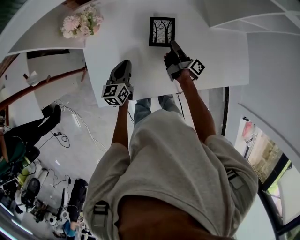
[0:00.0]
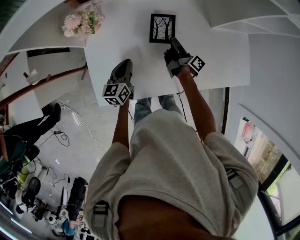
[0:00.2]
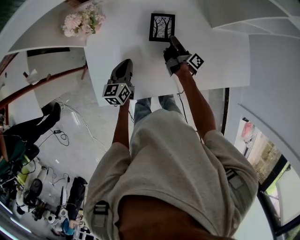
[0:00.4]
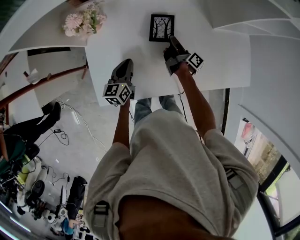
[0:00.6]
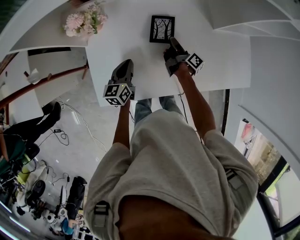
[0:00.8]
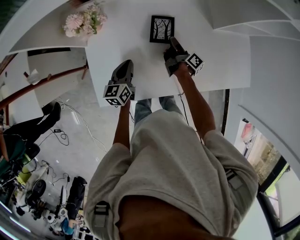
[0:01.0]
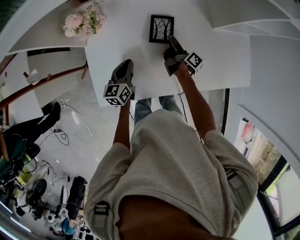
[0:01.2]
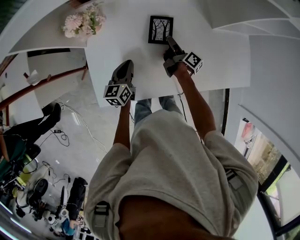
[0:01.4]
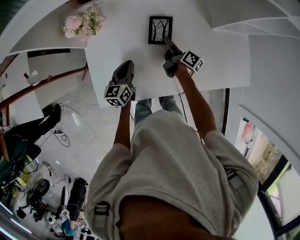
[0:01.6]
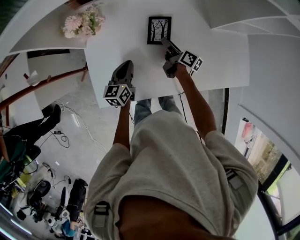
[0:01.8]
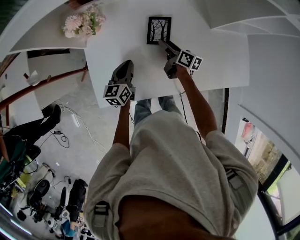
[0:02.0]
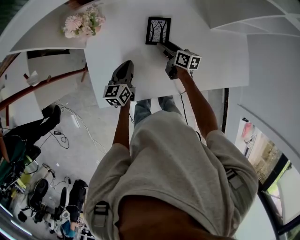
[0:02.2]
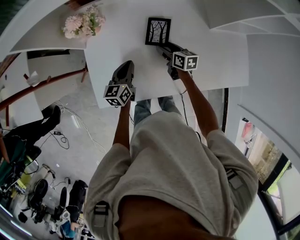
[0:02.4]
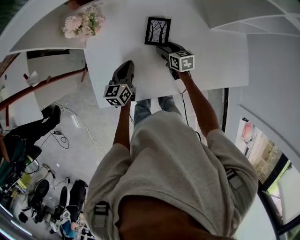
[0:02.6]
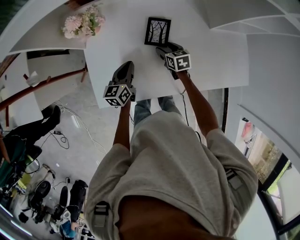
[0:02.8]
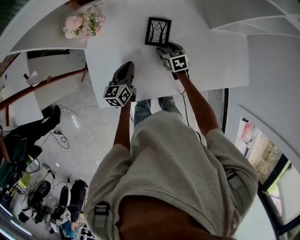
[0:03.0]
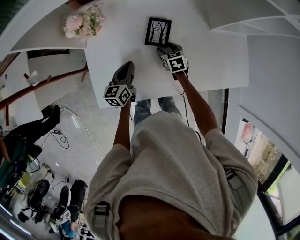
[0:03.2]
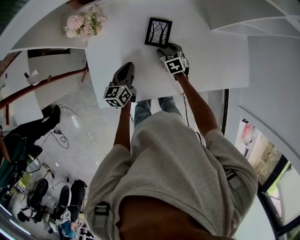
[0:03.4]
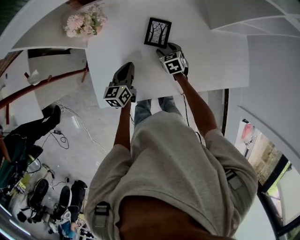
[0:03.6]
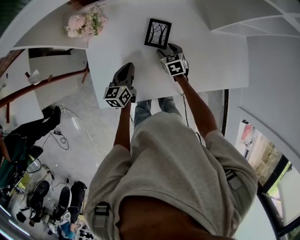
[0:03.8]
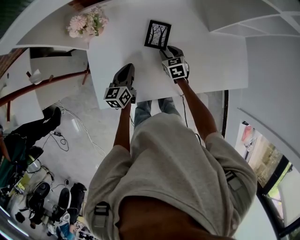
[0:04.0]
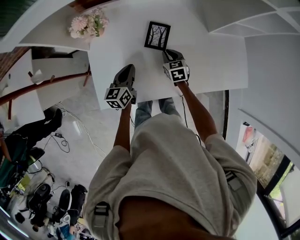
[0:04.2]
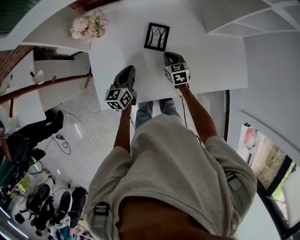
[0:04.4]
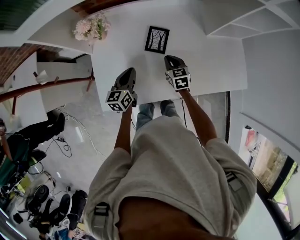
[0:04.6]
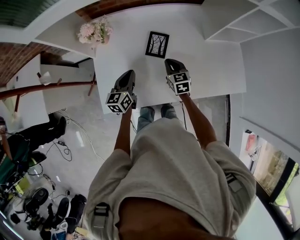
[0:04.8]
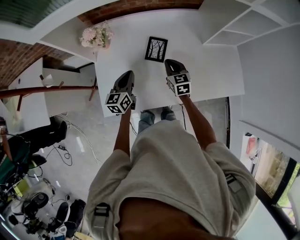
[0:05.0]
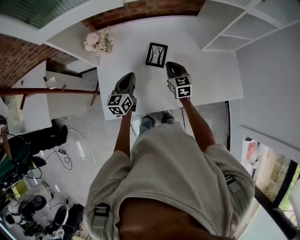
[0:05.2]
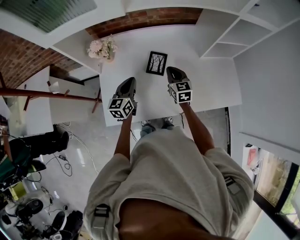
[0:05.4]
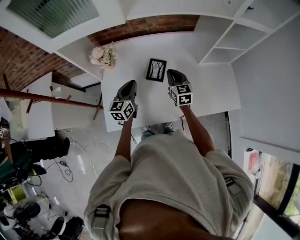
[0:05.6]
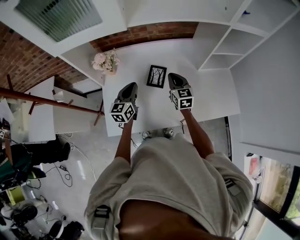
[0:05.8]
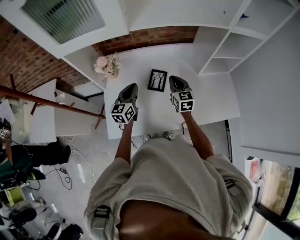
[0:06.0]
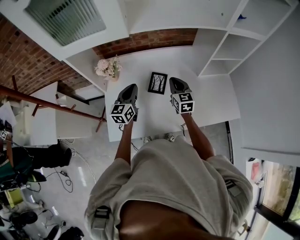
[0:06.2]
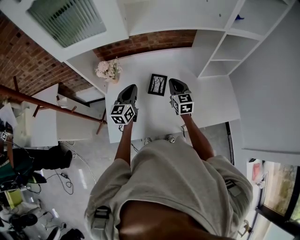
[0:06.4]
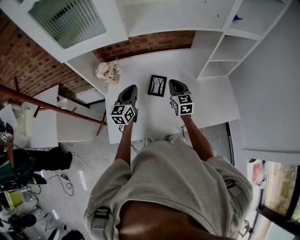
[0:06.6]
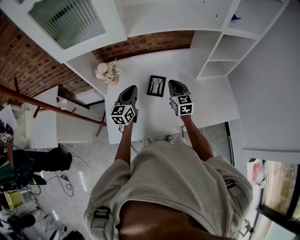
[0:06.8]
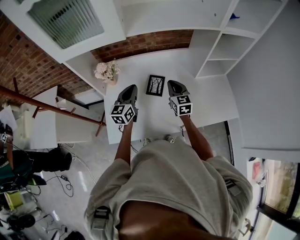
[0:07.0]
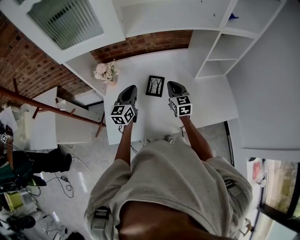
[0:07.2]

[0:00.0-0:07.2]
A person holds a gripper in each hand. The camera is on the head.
0:04.4 to 0:05.8: The left gripper shifts about 10 cm upward.

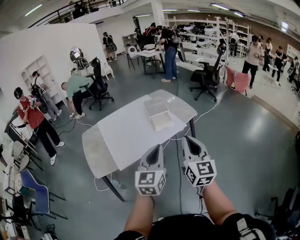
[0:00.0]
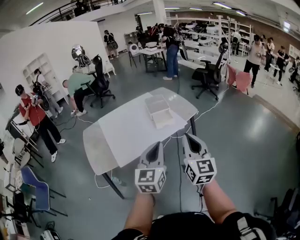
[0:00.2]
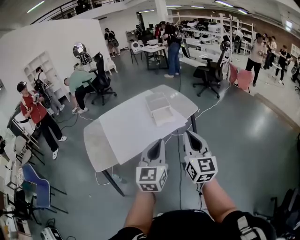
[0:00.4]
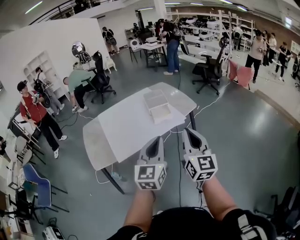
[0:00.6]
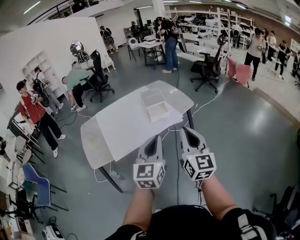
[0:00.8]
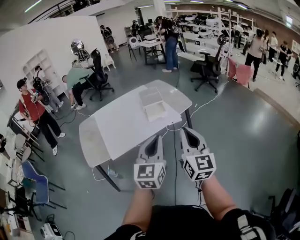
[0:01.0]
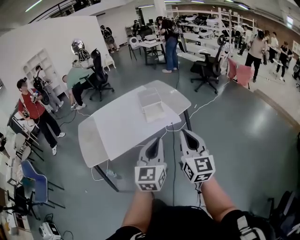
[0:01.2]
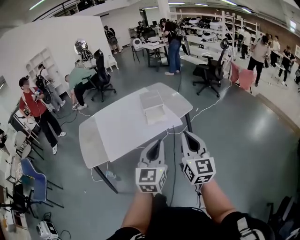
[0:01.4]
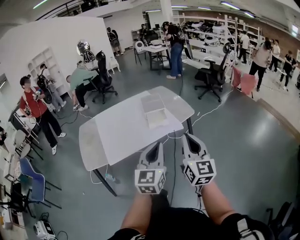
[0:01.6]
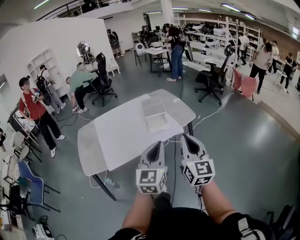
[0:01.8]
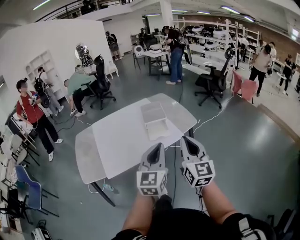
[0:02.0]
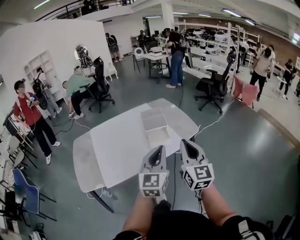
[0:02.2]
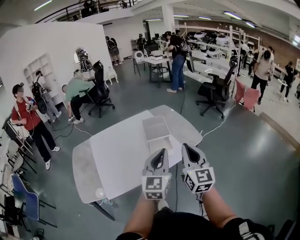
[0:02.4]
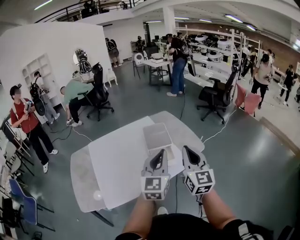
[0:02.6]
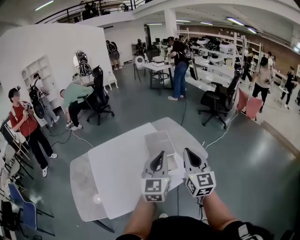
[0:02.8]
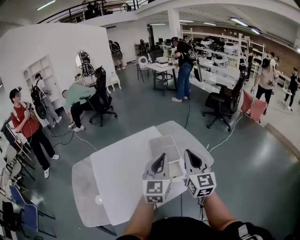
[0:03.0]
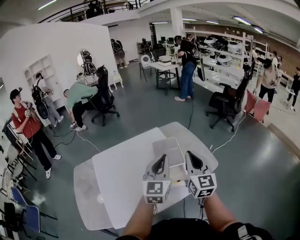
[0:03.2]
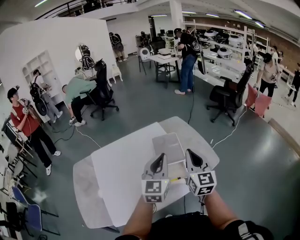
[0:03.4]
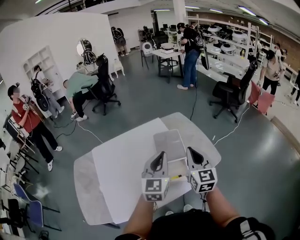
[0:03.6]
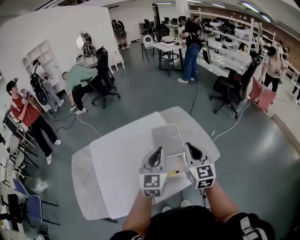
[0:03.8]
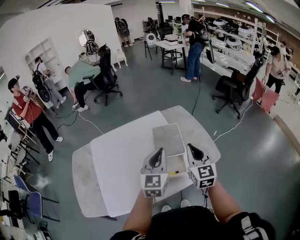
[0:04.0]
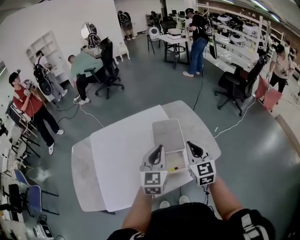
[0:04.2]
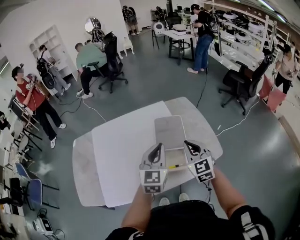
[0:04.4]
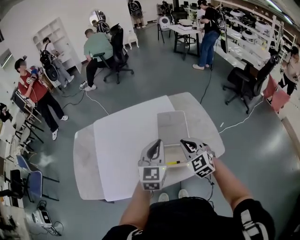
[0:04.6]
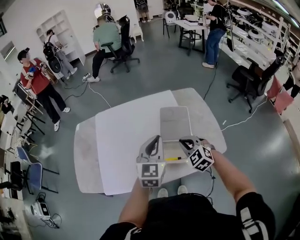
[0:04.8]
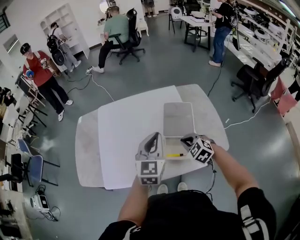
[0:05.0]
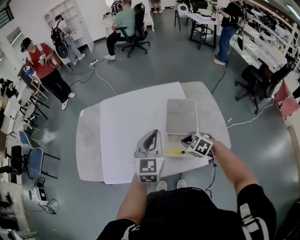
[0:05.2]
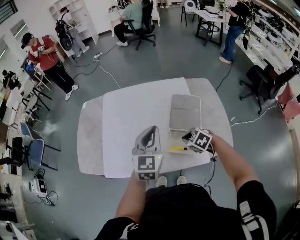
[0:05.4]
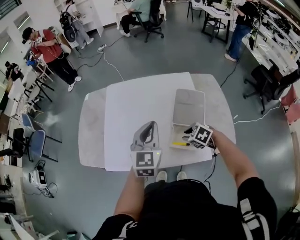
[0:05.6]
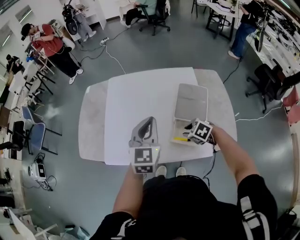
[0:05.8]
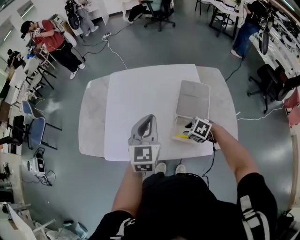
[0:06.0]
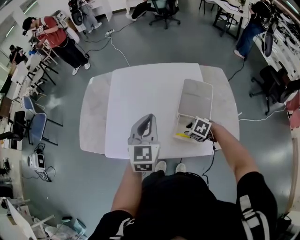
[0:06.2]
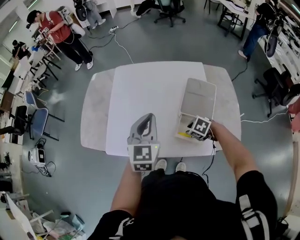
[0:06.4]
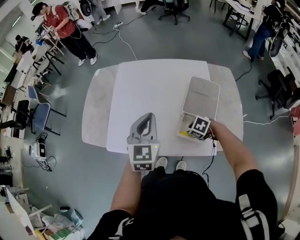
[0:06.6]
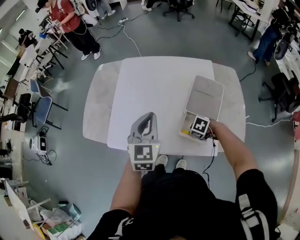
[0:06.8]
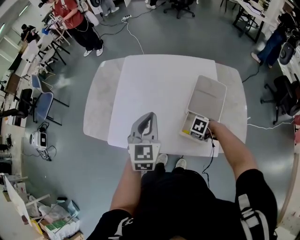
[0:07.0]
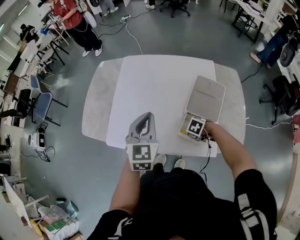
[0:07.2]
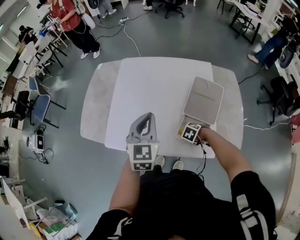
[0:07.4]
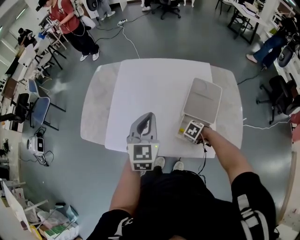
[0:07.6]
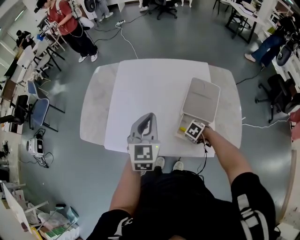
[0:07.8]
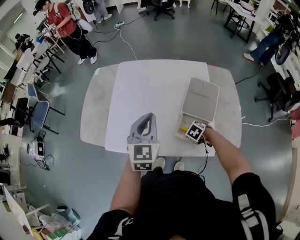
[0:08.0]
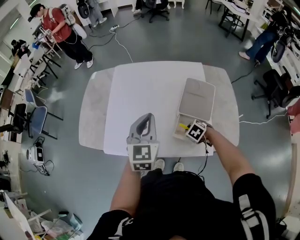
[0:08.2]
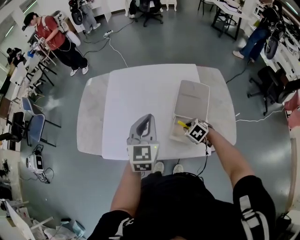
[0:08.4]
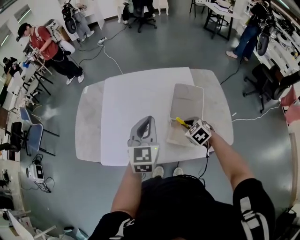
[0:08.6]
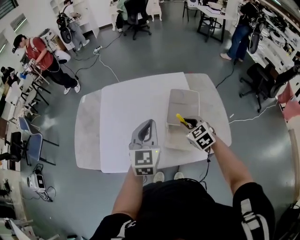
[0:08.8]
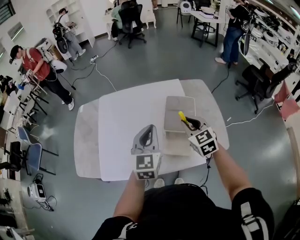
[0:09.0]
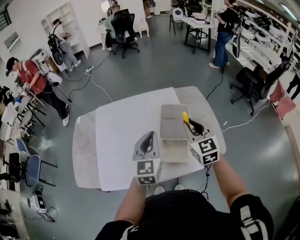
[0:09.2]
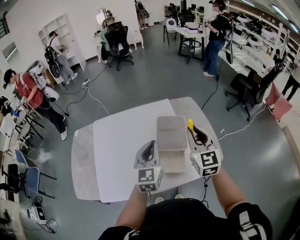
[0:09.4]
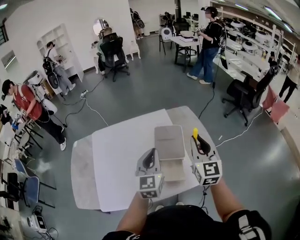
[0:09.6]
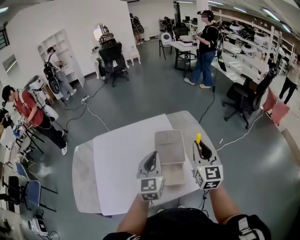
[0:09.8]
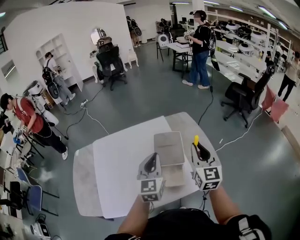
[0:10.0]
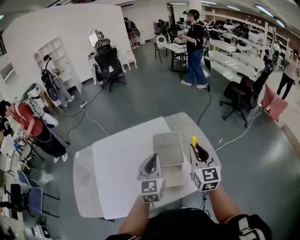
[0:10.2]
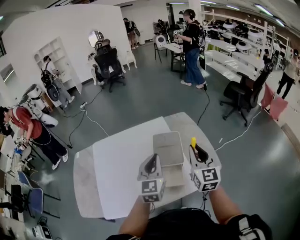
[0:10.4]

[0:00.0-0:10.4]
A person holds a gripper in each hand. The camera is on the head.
0:00.0 to 0:01.4: Both grippers move to the right, some 10 cm.
0:01.4 to 0:03.0: Both grippers are carried forward, approximately 40 cm.
0:03.0 to 0:04.4: The grippers both shift downward and forward by approximately 15 cm. The right gripper turns by roughly 30 degrees.
0:04.4 to 0:06.0: The right gripper shifts about 20 cm downward, tilts its fingers about 50 degrees downward, and opens. Meanwhile the left gripper shifts by about 15 cm, and turns by about 20 degrees.
0:06.0 to 0:07.4: The right gripper travels downward by approximately 10 cm, and swivels about 20 degrees.
0:07.4 to 0:09.0: The left gripper changes place by approximately 10 cm. Meanwhile the right gripper goes roughly 30 cm upward, and angles its fingers upward, by about 60 degrees.
0:09.0 to 0:10.4: The left gripper goes roughly 10 cm to the right, while the right gripper is displaced to the right and upward by approximately 15 cm, and swivels about 40 degrees.

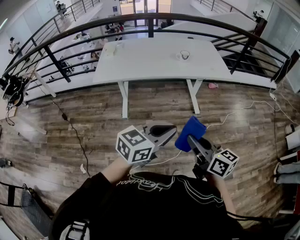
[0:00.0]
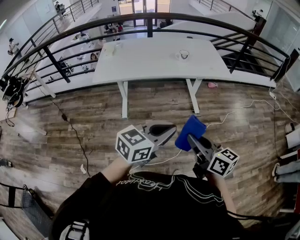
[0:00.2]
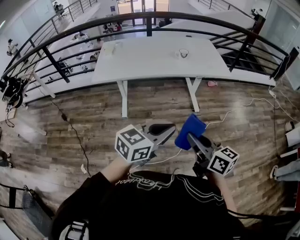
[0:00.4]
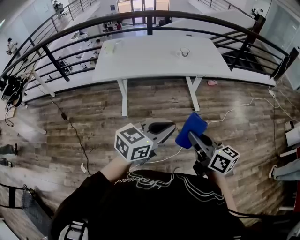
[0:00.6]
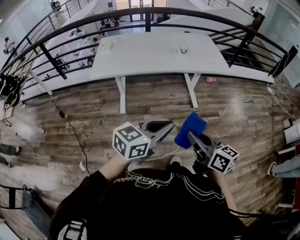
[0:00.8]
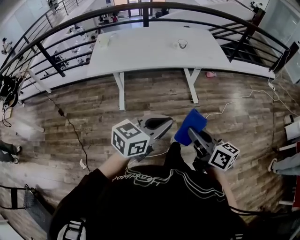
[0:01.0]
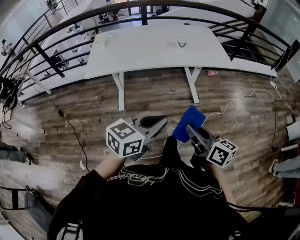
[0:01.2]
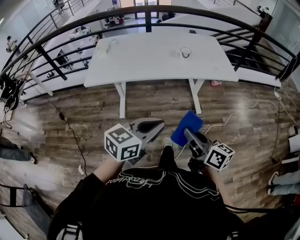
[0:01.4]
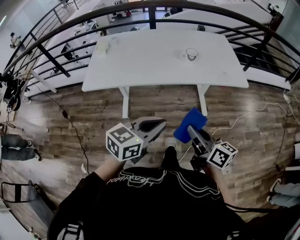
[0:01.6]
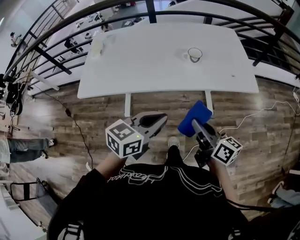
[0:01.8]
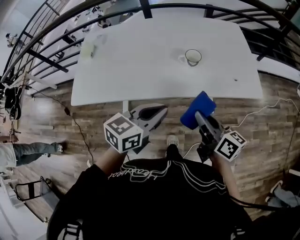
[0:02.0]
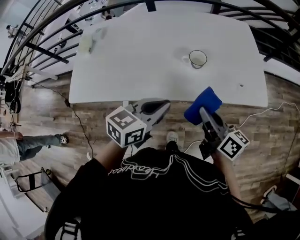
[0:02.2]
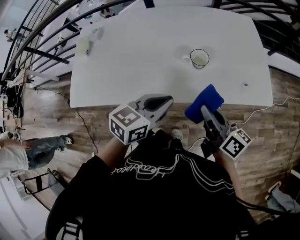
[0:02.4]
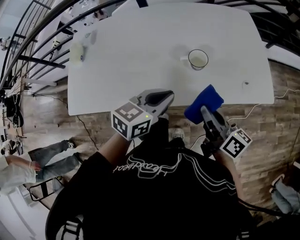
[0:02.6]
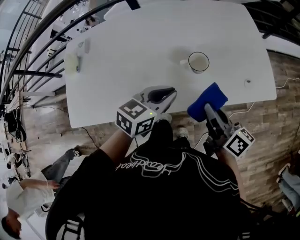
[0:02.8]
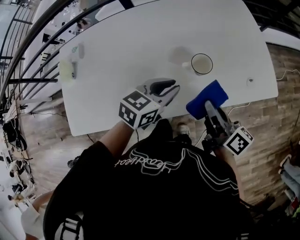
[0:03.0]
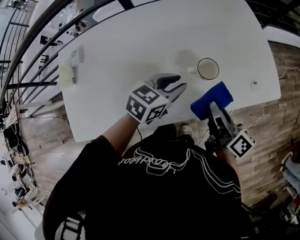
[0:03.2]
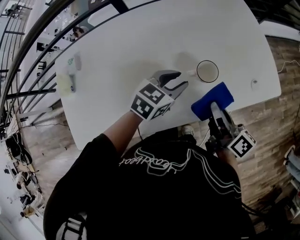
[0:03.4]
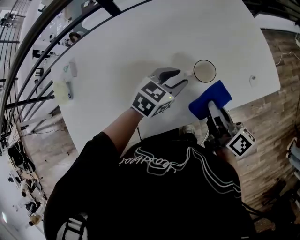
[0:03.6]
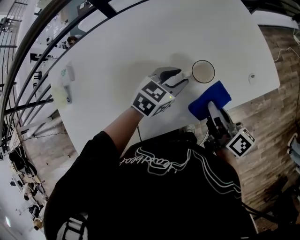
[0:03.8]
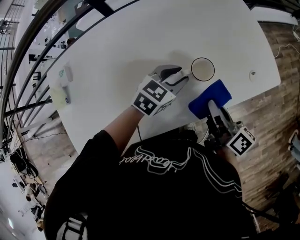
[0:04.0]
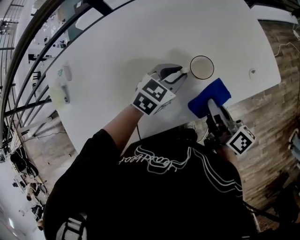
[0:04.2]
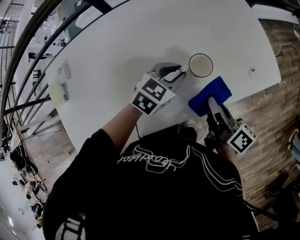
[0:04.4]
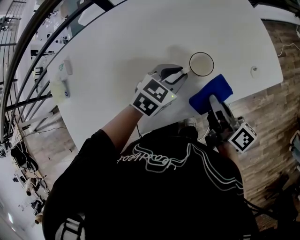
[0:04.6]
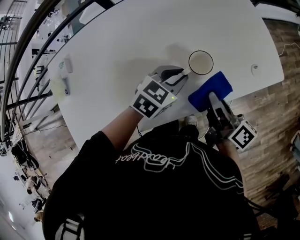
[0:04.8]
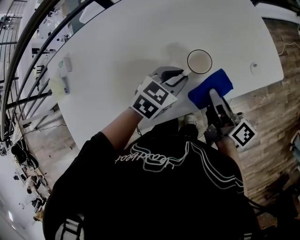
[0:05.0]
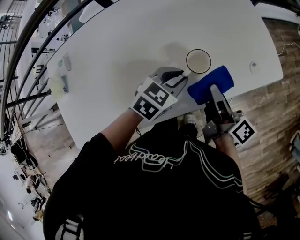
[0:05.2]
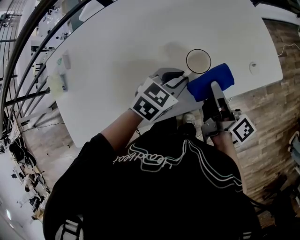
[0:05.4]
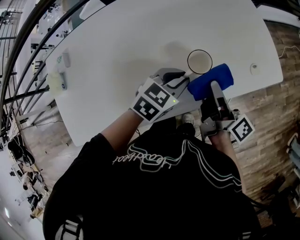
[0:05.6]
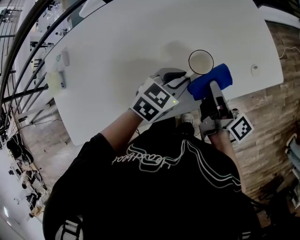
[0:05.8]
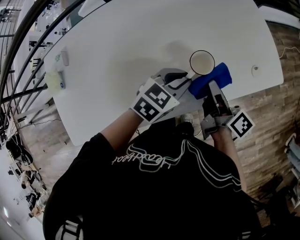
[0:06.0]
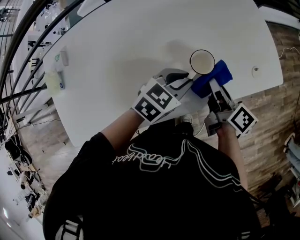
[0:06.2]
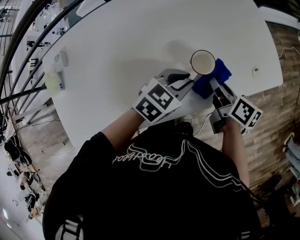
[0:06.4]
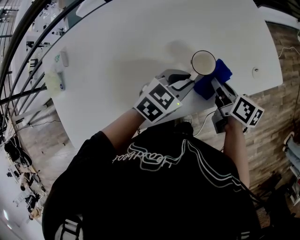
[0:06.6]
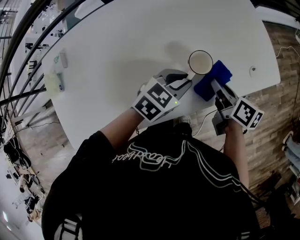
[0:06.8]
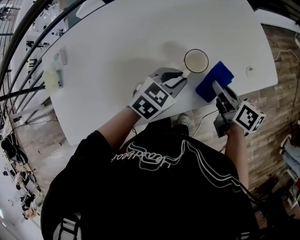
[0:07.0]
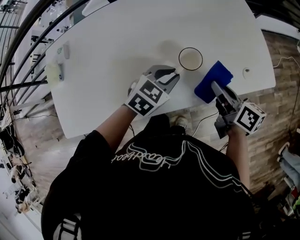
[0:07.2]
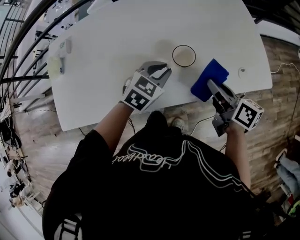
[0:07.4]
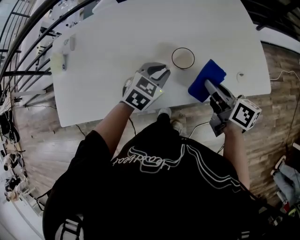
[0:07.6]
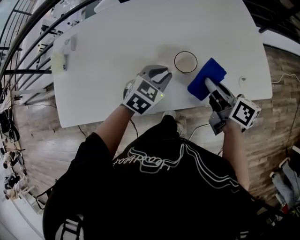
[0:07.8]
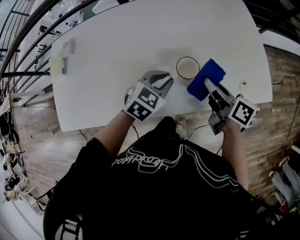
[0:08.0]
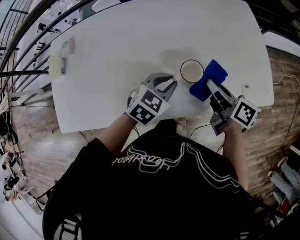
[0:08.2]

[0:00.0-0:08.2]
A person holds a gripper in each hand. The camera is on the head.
0:00.0 to 0:01.6: Both grippers move forward, approximately 25 cm.
0:01.6 to 0:03.2: The pair of grippers is taken forward, about 50 cm. The right gripper turns by roughly 30 degrees; the left gripper changes its angle by roughly 20 degrees, and opens up.
0:03.2 to 0:05.0: The left gripper shifts by roughly 5 cm.
0:05.0 to 0:06.6: The right gripper heads downward, covering some 5 cm, and changes its angle by approximately 30 degrees.
0:06.6 to 0:08.2: The right gripper moves upward, approximately 5 cm, and changes its angle by some 20 degrees; the left gripper swivels some 20 degrees.
